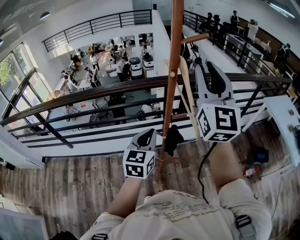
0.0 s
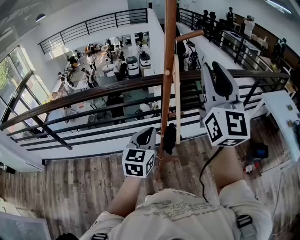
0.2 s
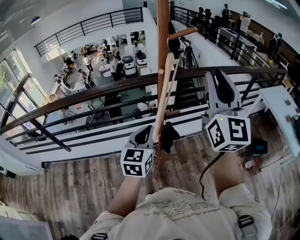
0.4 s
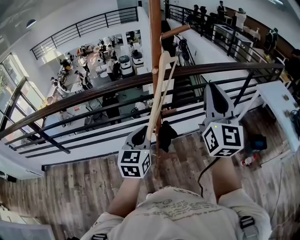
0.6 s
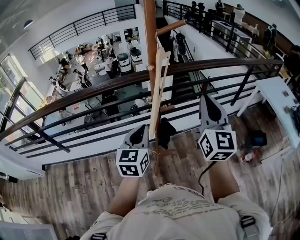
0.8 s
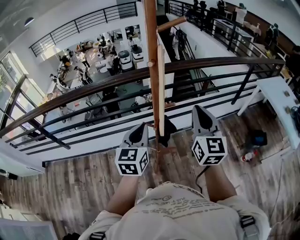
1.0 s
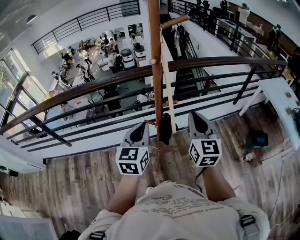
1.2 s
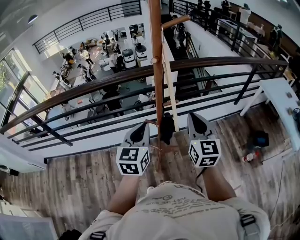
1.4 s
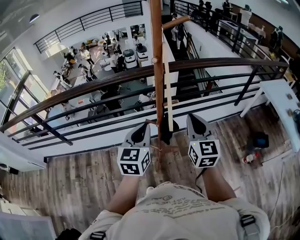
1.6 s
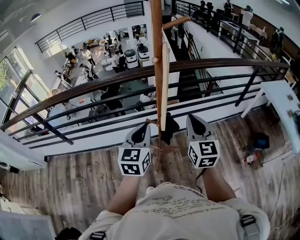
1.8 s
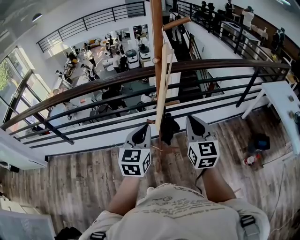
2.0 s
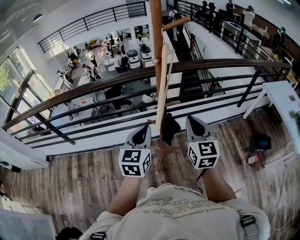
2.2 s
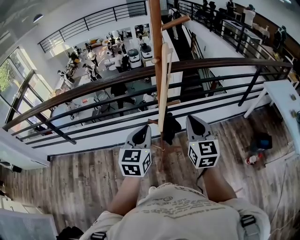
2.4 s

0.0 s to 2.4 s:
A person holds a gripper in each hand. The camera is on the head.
0.0 to 1.2 s: The right gripper shifts about 25 cm downward, rotates about 30 degrees, and closes up.
1.2 to 2.4 s: The grippers make only small movements.

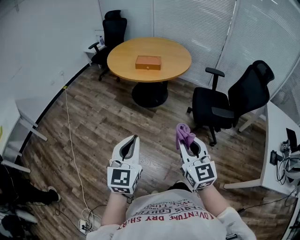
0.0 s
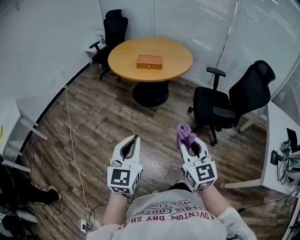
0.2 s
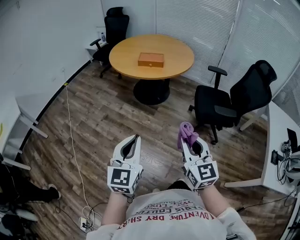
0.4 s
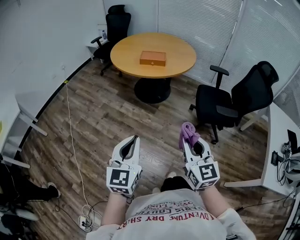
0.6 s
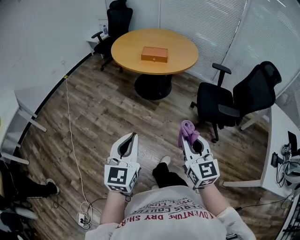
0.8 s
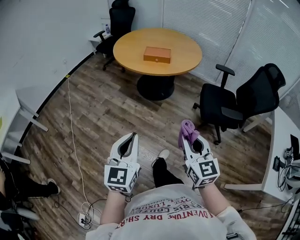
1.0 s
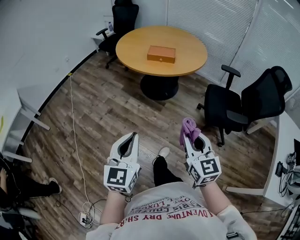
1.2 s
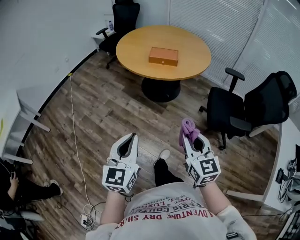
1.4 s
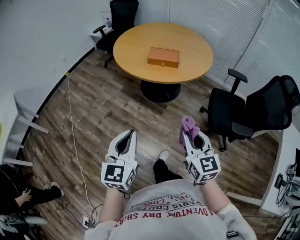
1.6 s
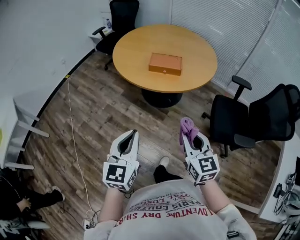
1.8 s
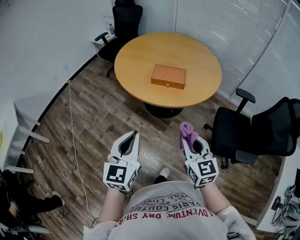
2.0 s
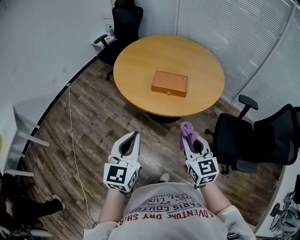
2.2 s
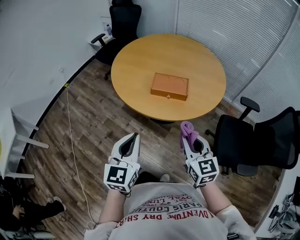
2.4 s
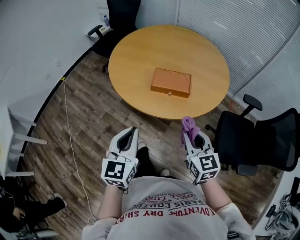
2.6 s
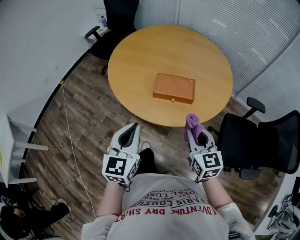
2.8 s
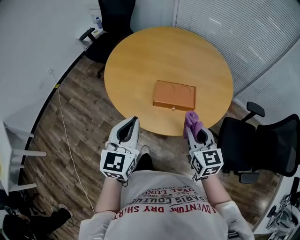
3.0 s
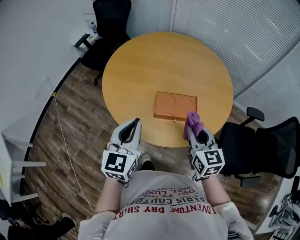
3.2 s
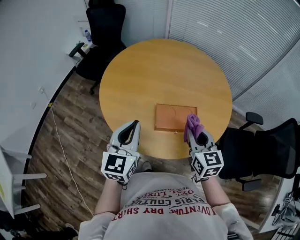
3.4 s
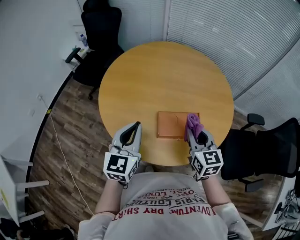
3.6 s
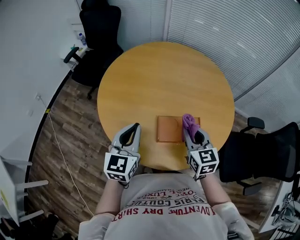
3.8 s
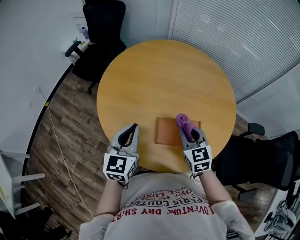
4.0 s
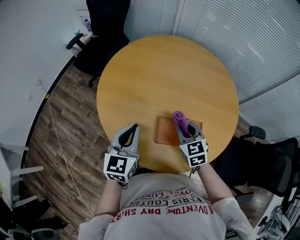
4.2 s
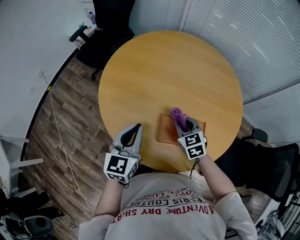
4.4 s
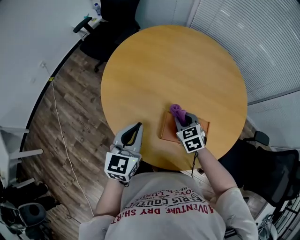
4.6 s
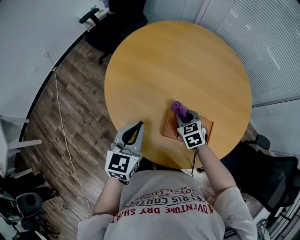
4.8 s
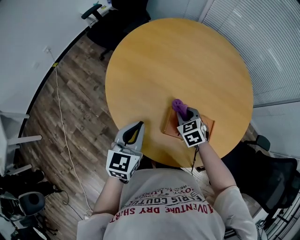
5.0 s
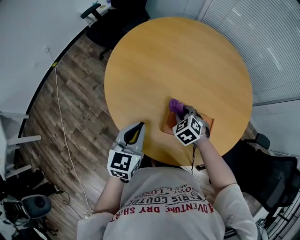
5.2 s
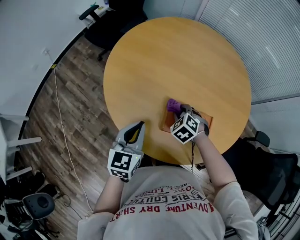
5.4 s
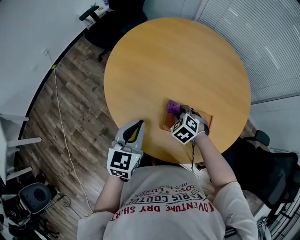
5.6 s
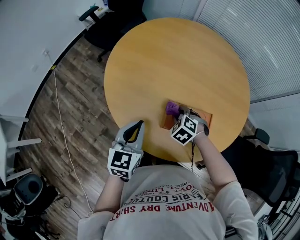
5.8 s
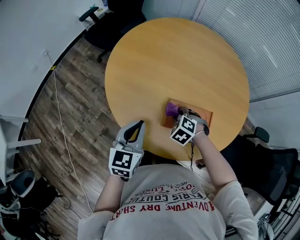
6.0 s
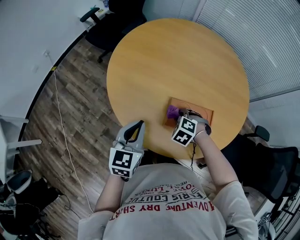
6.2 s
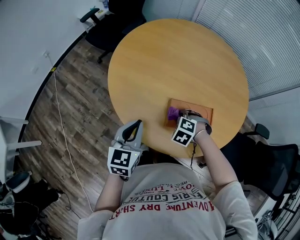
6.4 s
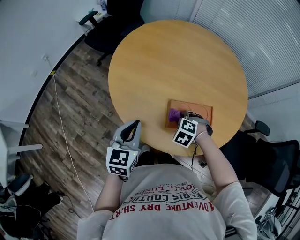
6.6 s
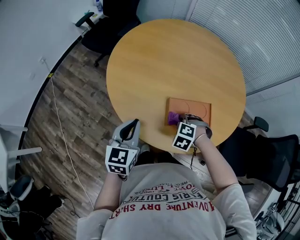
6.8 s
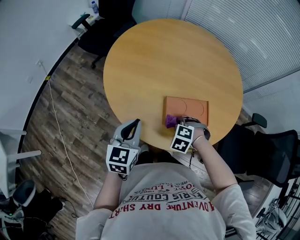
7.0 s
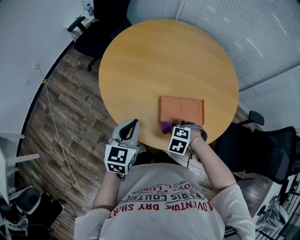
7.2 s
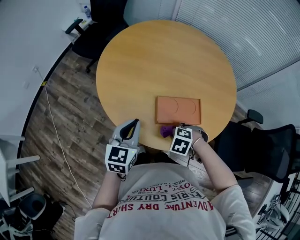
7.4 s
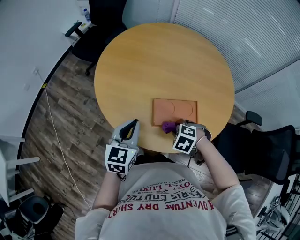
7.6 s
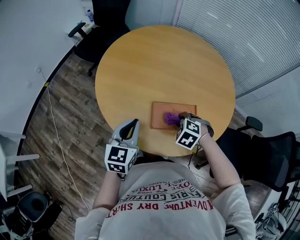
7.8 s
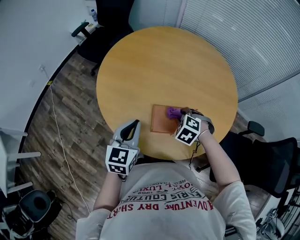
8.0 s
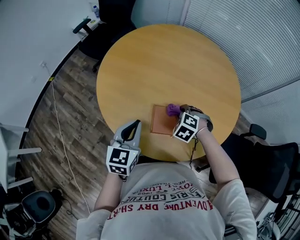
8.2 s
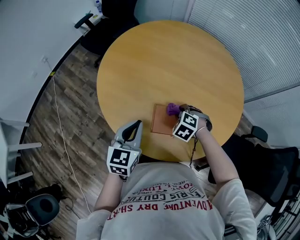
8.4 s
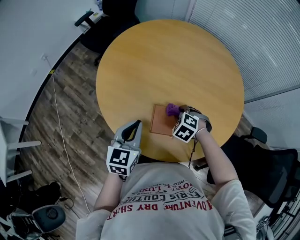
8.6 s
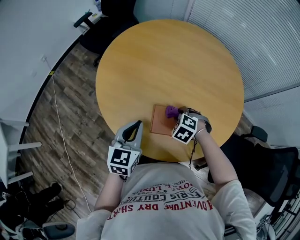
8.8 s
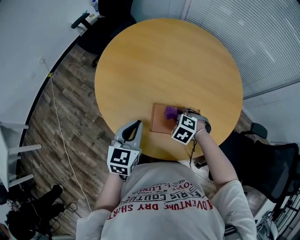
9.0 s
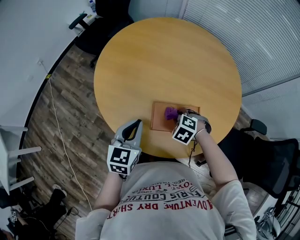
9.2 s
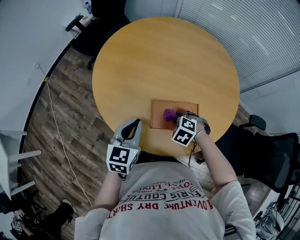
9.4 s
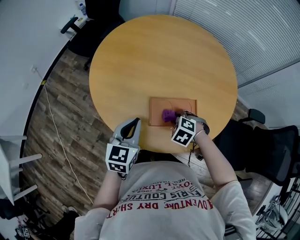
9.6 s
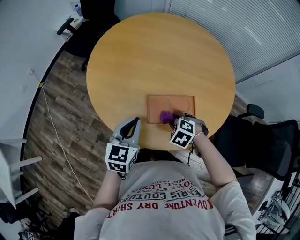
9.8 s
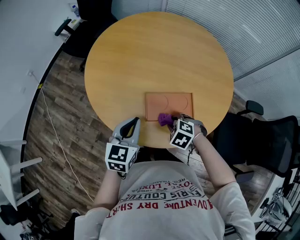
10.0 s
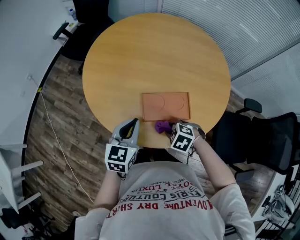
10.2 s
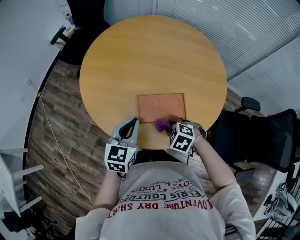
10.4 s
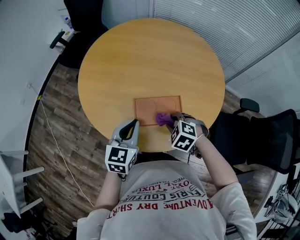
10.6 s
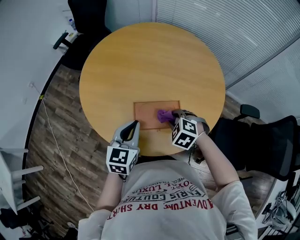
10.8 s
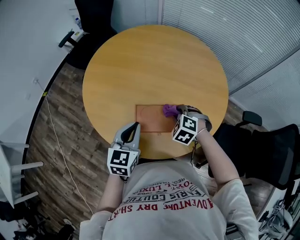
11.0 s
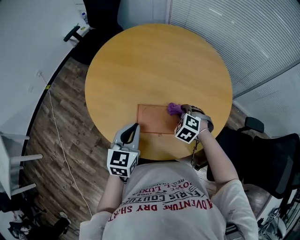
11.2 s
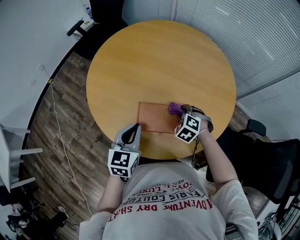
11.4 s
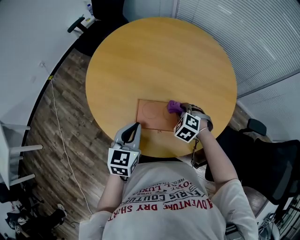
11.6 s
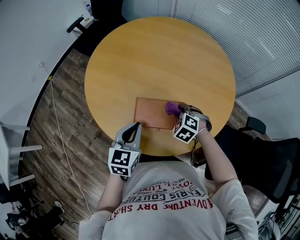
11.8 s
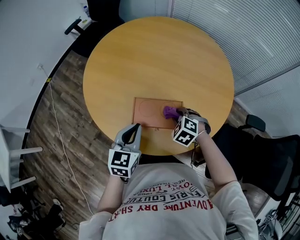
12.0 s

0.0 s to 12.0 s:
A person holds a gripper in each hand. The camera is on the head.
0.0 to 1.6 s: The two grippers go roughly 25 cm forward.
1.6 to 3.0 s: Both grippers are carried forward, roughly 50 cm.
3.0 to 4.4 s: The left gripper heads forward, covering some 25 cm. The right gripper heads forward and downward, covering some 30 cm, and turns by approximately 30 degrees.
4.4 to 6.0 s: The right gripper shifts some 10 cm downward, and turns by approximately 50 degrees. The left gripper moves backward, approximately 5 cm.
6.0 to 7.6 s: The right gripper shifts by approximately 15 cm.
7.6 to 9.0 s: The right gripper changes place by some 10 cm. Meanwhile the left gripper moves about 5 cm.
9.0 to 10.4 s: The left gripper shifts by approximately 5 cm. Meanwhile the right gripper heads backward, covering some 10 cm.
10.4 to 12.0 s: The left gripper shifts some 5 cm to the right; the right gripper moves forward and to the right, approximately 10 cm.

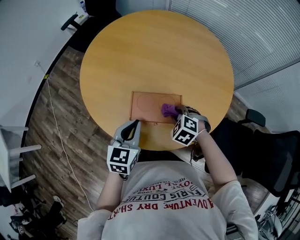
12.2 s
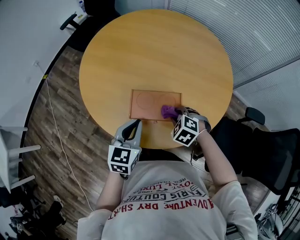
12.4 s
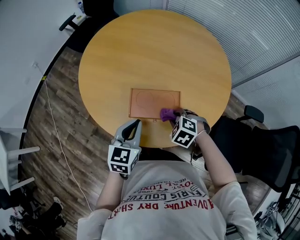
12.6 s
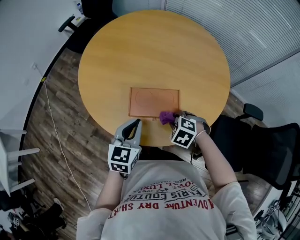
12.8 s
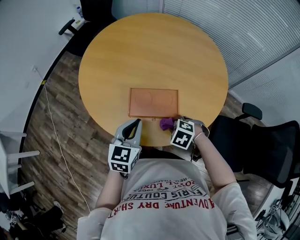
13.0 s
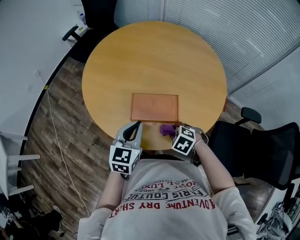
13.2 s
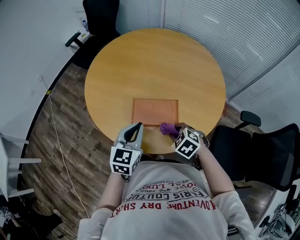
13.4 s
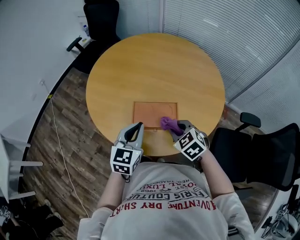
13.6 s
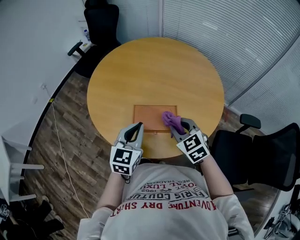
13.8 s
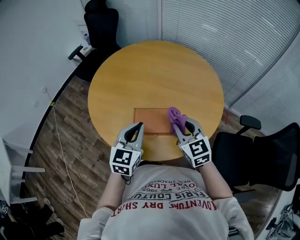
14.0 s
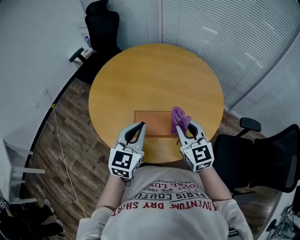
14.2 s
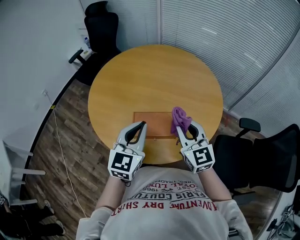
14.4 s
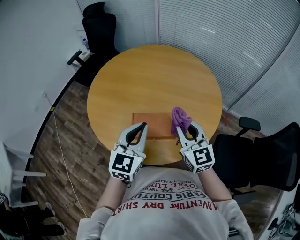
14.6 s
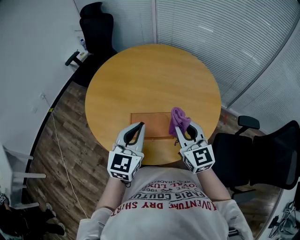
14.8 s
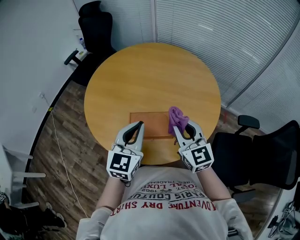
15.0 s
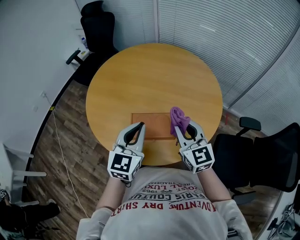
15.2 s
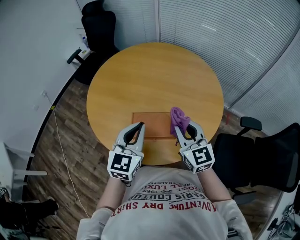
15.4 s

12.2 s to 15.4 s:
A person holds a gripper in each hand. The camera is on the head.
12.2 to 13.8 s: The right gripper is displaced upward by roughly 15 cm, and rotates approximately 40 degrees, while the left gripper travels upward by roughly 5 cm.
13.8 to 15.4 s: Both grippers move upward, roughly 5 cm. The right gripper turns by about 30 degrees.

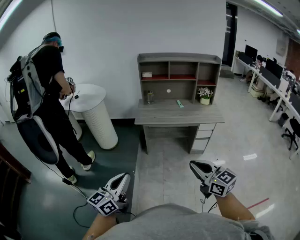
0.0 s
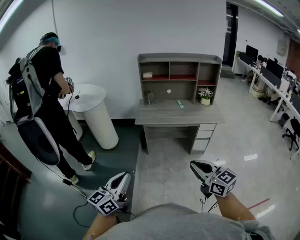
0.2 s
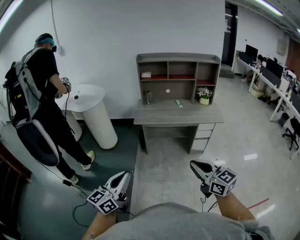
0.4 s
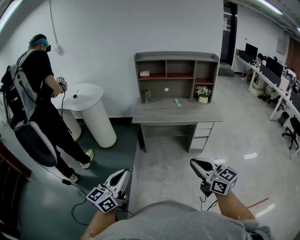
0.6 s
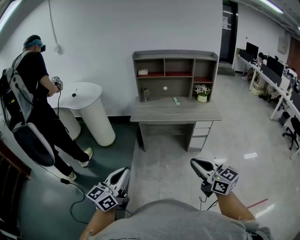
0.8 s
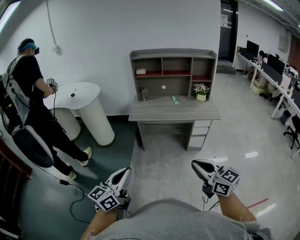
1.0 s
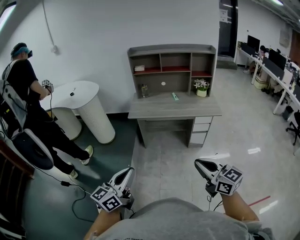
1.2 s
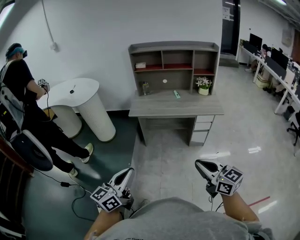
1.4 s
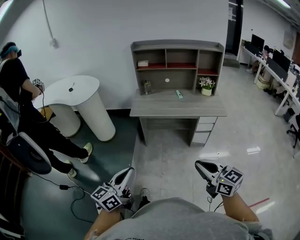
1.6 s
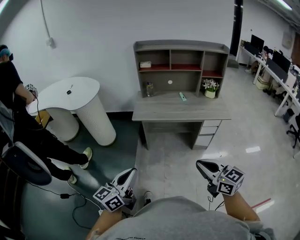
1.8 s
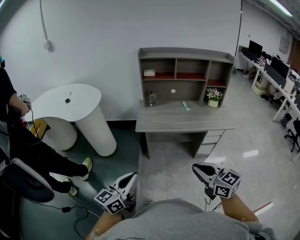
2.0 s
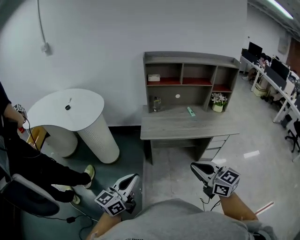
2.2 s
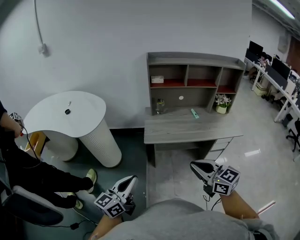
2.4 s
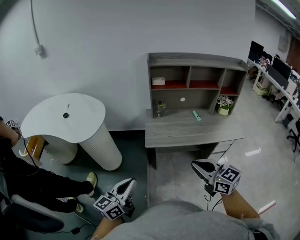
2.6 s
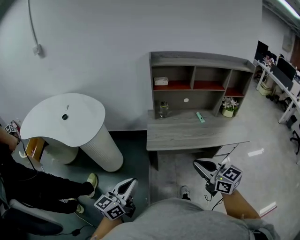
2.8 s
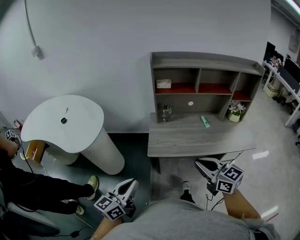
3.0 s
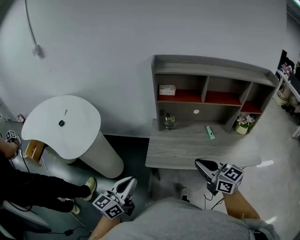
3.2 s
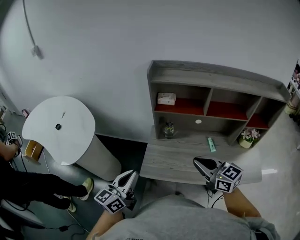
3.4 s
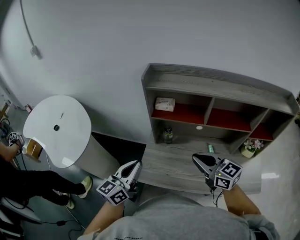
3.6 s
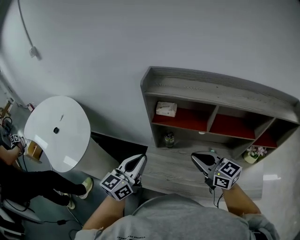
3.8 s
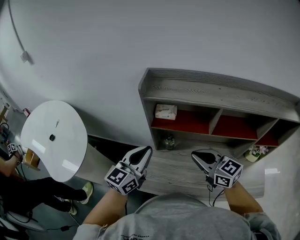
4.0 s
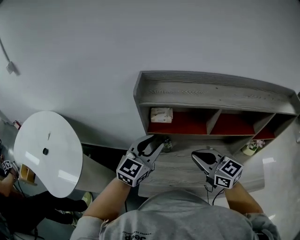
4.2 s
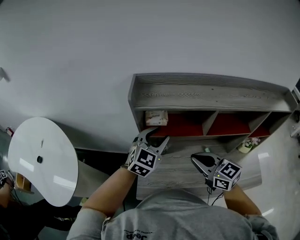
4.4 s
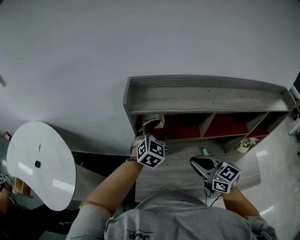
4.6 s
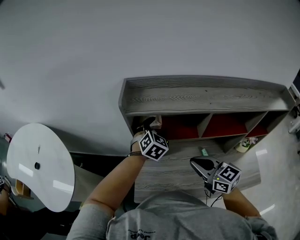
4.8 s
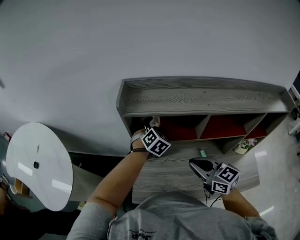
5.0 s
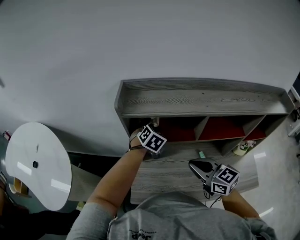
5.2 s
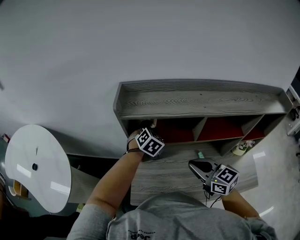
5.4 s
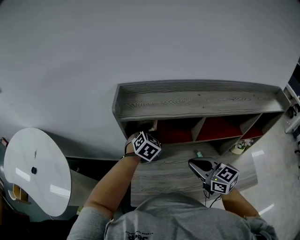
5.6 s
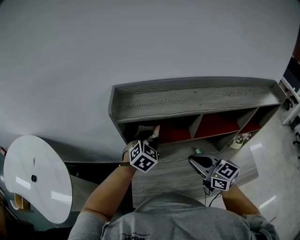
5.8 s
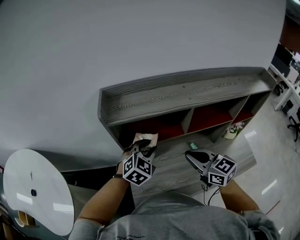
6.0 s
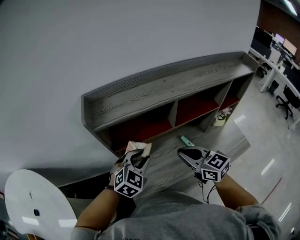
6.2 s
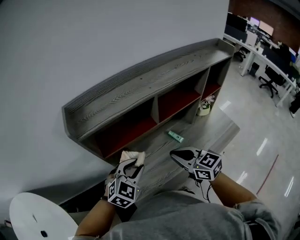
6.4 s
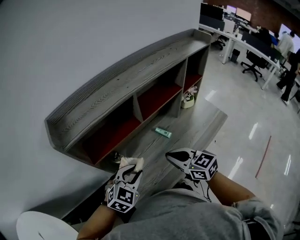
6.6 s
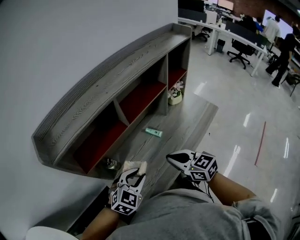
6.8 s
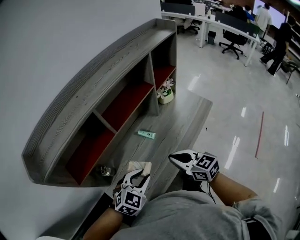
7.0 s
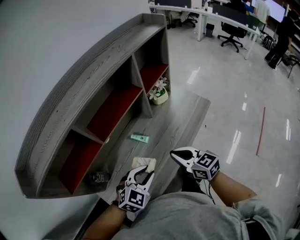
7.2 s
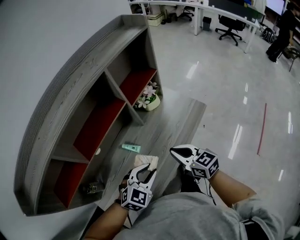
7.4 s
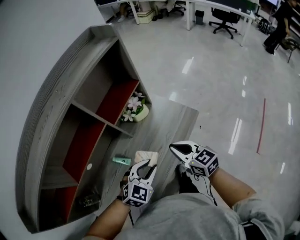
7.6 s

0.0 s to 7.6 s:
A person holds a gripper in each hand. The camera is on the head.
0.0 to 1.6 s: Both grippers travel together to the right, about 10 cm.
1.6 to 3.0 s: Both grippers are carried forward and to the left, roughly 50 cm.
3.0 to 4.6 s: The left gripper moves forward and to the right, about 60 cm, rolls clockwise, seen from behind, by some 50 degrees, and opens up. The right gripper heads forward, covering roughly 35 cm.
4.6 to 6.0 s: The left gripper travels backward by about 5 cm.
6.0 to 7.6 s: Both grippers are carried about 40 cm. The right gripper swivels roughly 50 degrees. Meanwhile the left gripper changes its angle by approximately 50 degrees.
